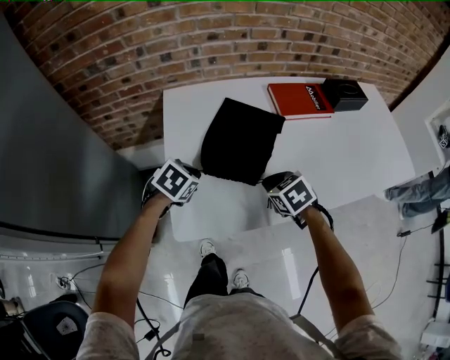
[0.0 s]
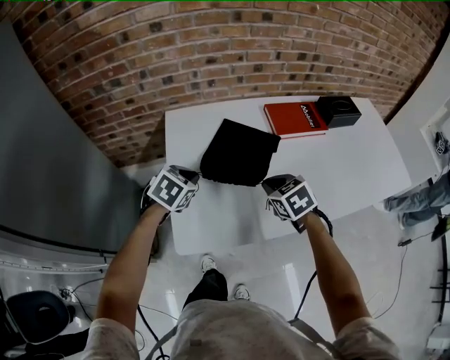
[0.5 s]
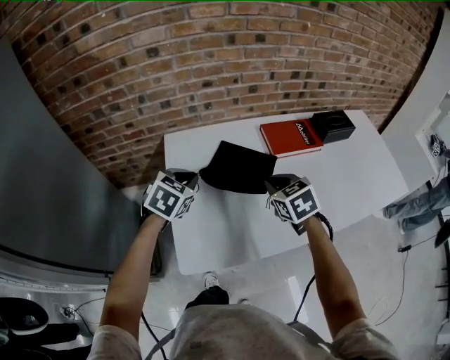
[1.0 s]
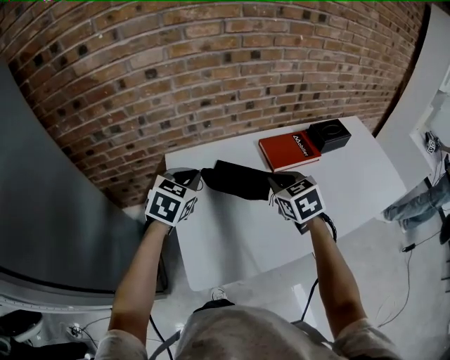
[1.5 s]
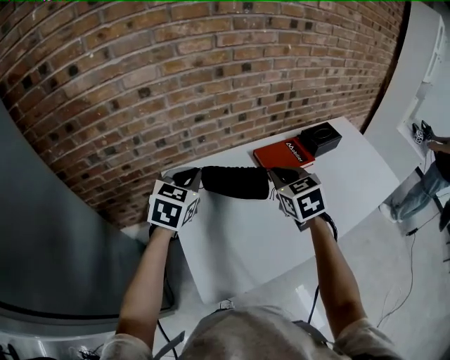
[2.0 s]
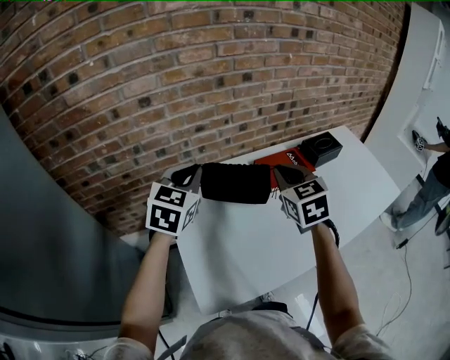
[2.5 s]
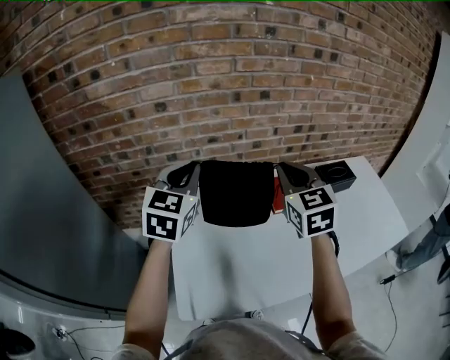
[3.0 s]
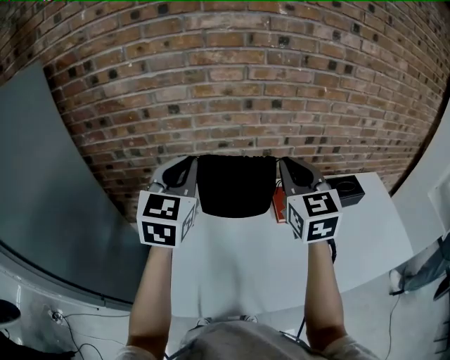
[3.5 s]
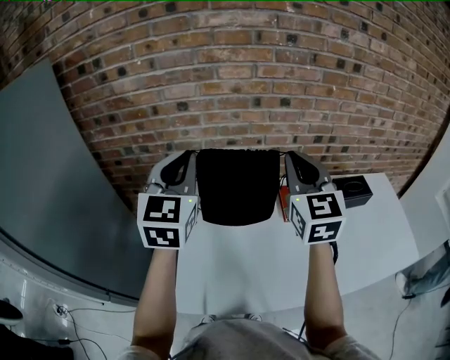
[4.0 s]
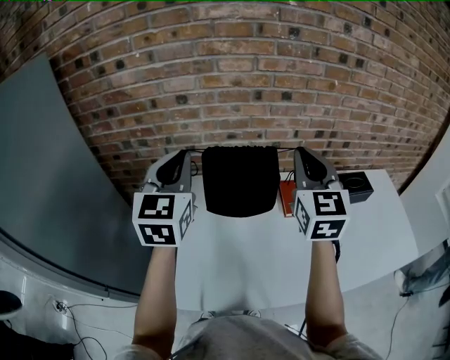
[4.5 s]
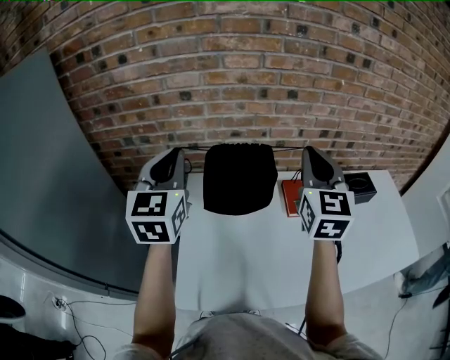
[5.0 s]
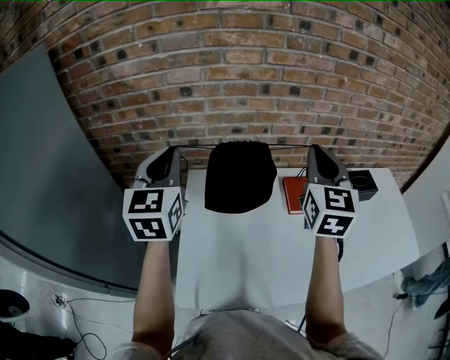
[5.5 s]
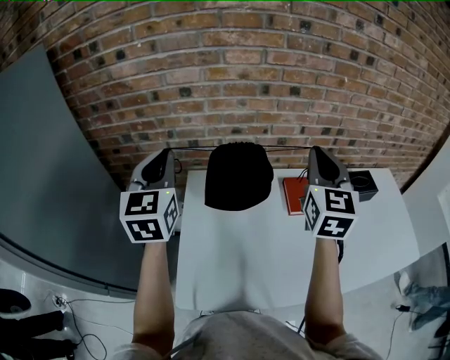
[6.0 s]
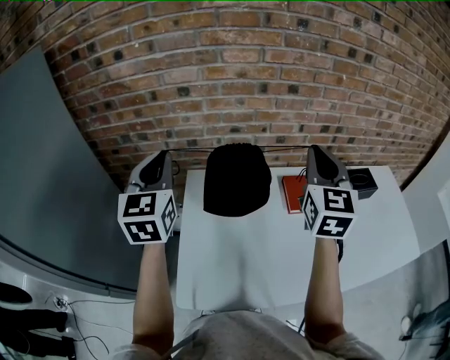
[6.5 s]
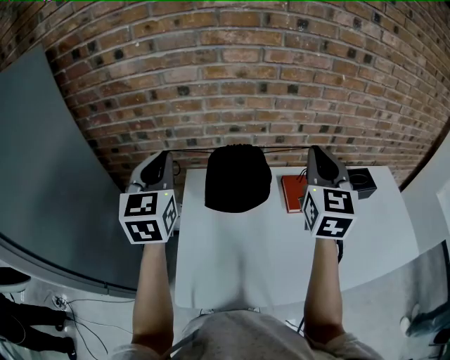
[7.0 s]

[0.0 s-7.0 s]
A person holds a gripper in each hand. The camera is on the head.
0.0 to 2.0 s: The grippers both shift upward and forward by roughly 30 cm. The left gripper points its fingers approximately 30 degrees further upward, while the right gripper changes its angle by some 40 degrees.
2.0 to 3.5 s: The two grippers go approximately 15 cm upward. The left gripper rotates roughly 30 degrees; the right gripper swivels approximately 30 degrees.
3.5 to 5.0 s: The left gripper is displaced to the left by some 5 cm.
5.0 to 7.0 s: The grippers make only small movements.

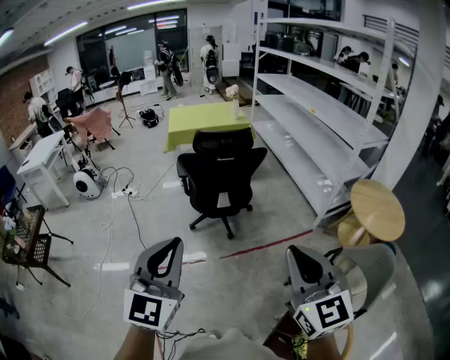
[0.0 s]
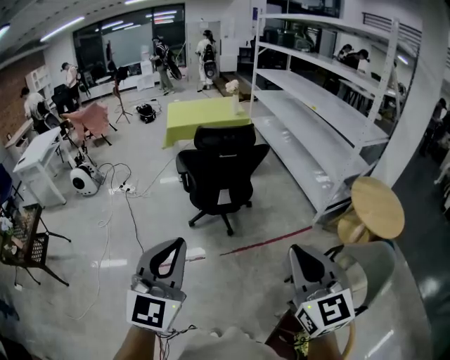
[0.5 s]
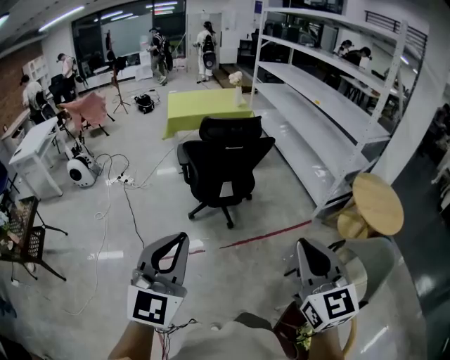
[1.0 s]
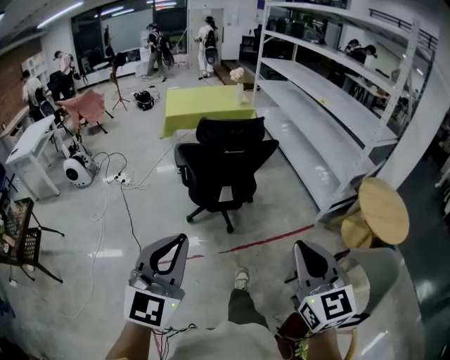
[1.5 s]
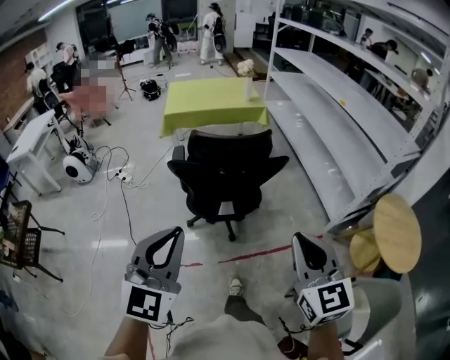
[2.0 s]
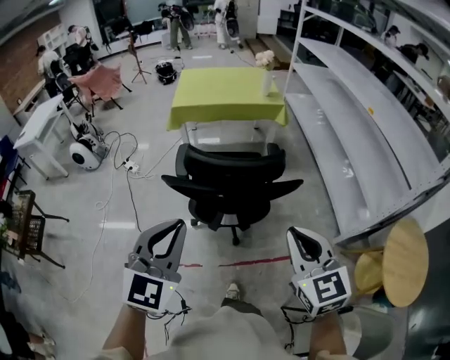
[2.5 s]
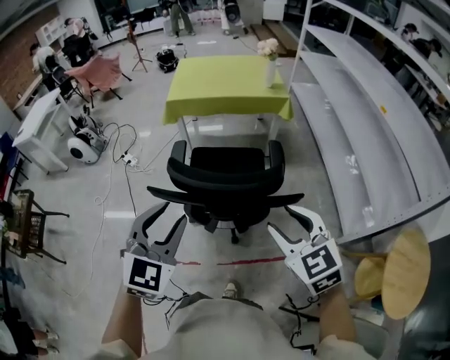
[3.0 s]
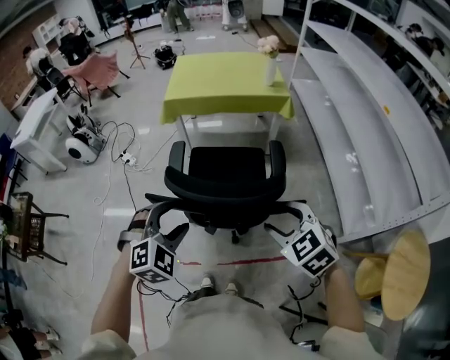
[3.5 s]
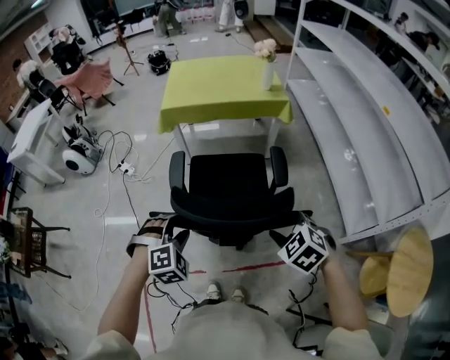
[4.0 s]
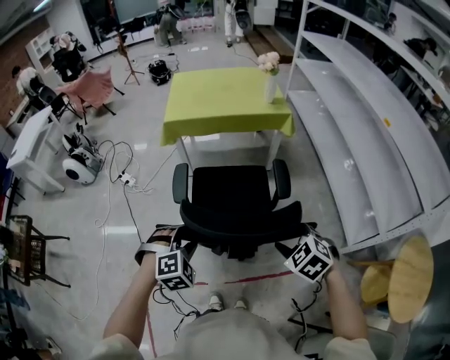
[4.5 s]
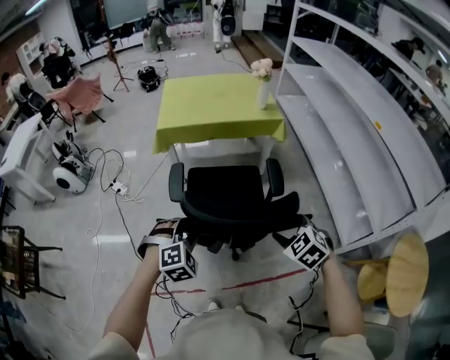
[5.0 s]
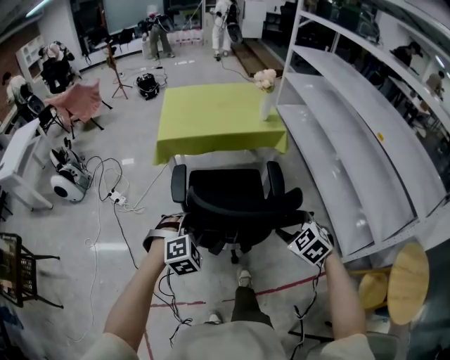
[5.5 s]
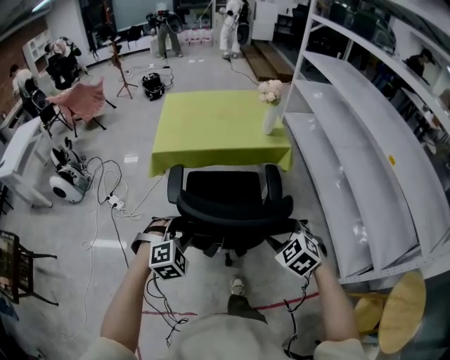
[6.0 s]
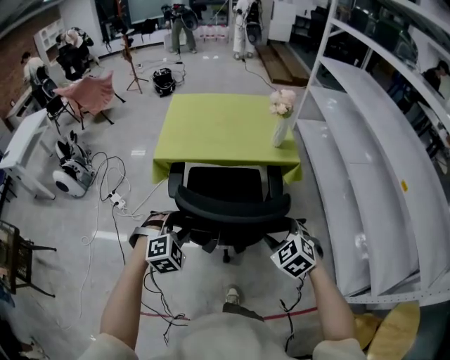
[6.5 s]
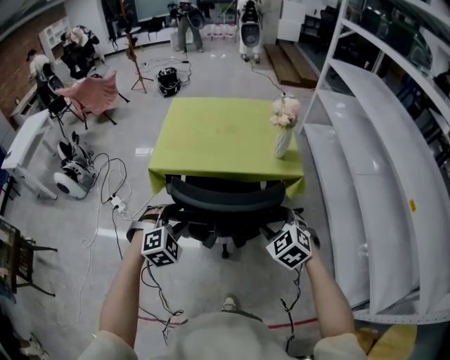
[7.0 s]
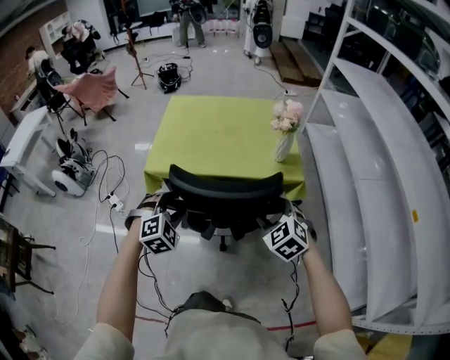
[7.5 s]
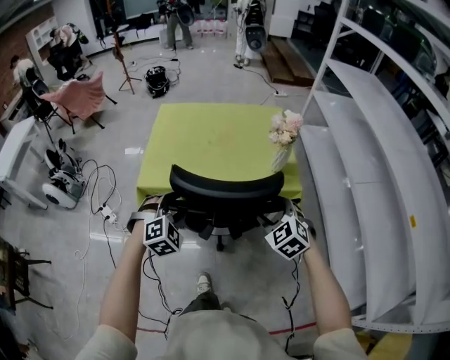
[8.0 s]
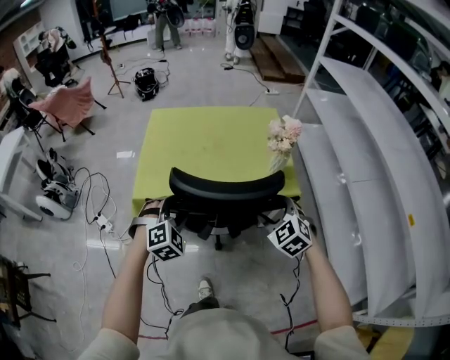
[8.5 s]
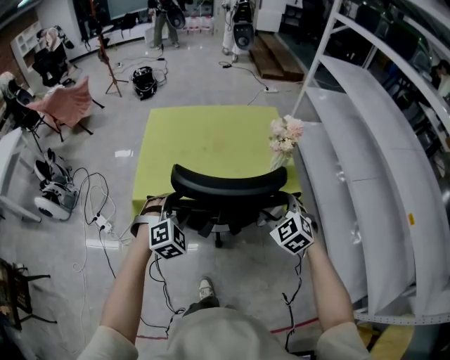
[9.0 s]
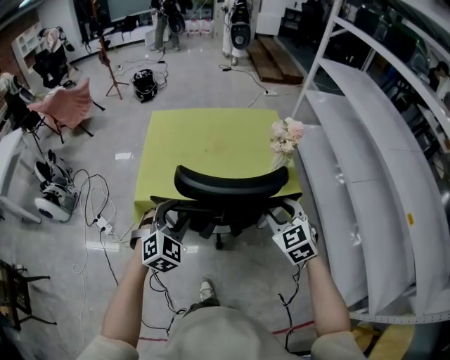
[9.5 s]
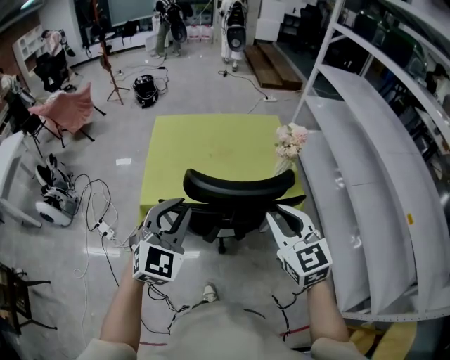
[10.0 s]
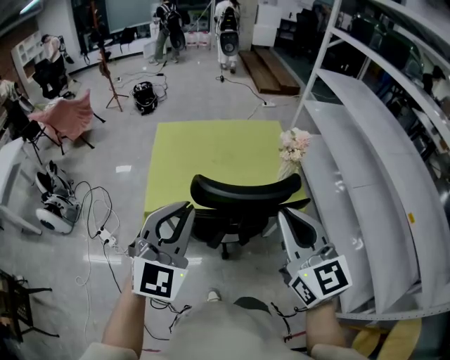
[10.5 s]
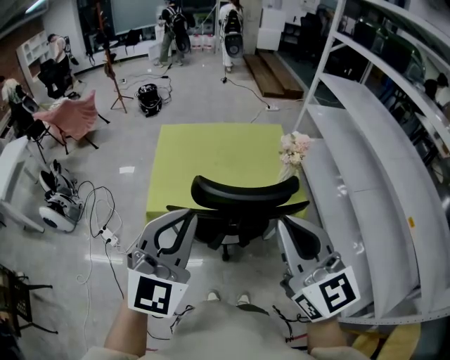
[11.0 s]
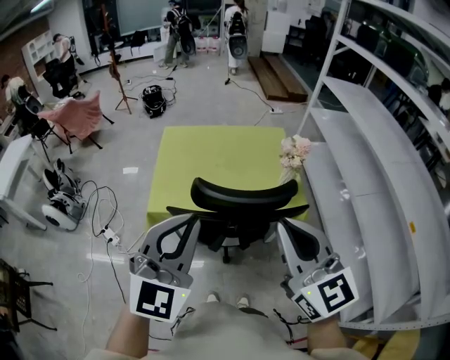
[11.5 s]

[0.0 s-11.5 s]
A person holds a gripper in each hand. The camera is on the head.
0.0 to 2.0 s: The two grippers go about 30 cm forward.
2.0 to 4.0 s: Both grippers move forward and downward, some 40 cm. The right gripper tilts its fingers roughly 50 degrees downward, and opens. The left gripper angles its fingers downward, by some 50 degrees, and opens its fingers.
4.0 to 6.0 s: Both grippers travel together forward, some 25 cm.
6.0 to 7.5 s: The grippers both shift forward by approximately 30 cm.
7.5 to 9.5 s: The right gripper moves forward, approximately 10 cm. Meanwhile the left gripper travels forward and upward by approximately 10 cm.
9.5 to 11.5 s: The right gripper goes some 25 cm upward and backward, points its fingers about 30 degrees further upward, and closes its fingers. The left gripper is displaced upward by roughly 25 cm, points its fingers about 30 degrees further upward, and closes its fingers.

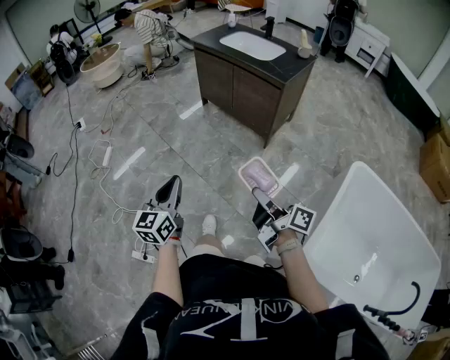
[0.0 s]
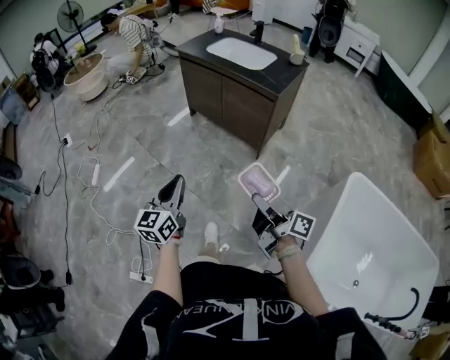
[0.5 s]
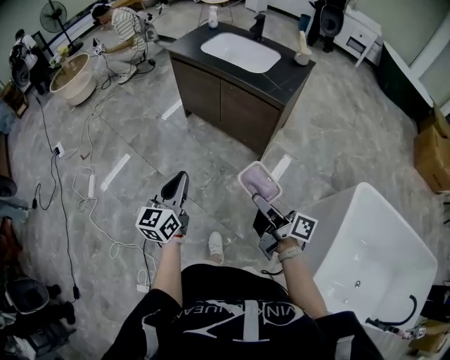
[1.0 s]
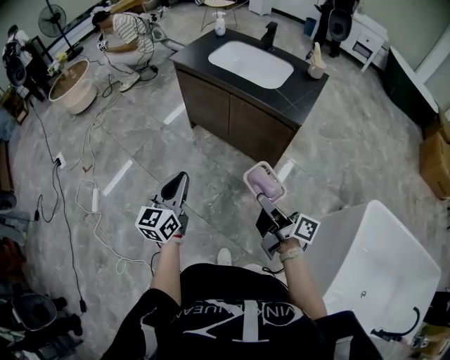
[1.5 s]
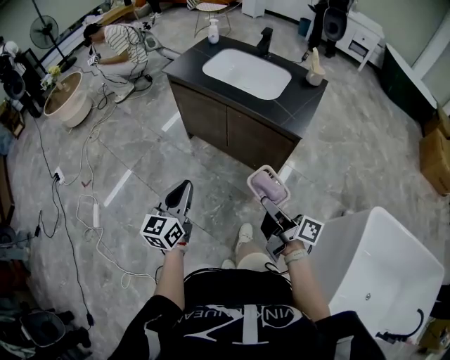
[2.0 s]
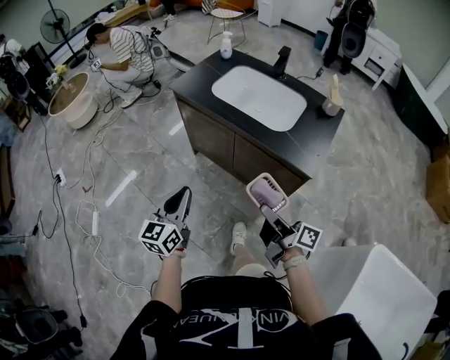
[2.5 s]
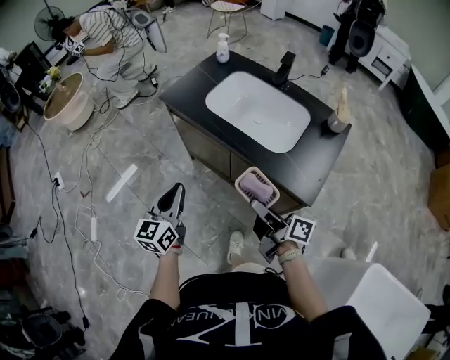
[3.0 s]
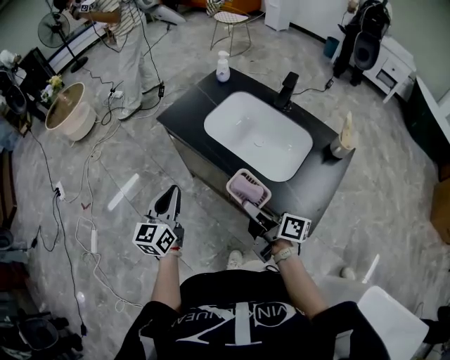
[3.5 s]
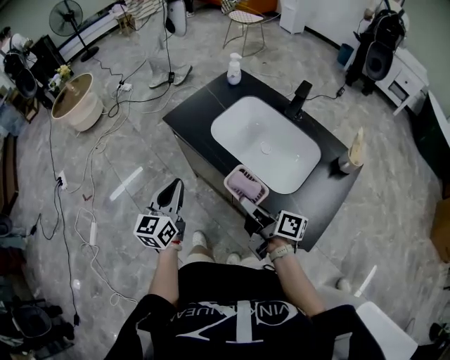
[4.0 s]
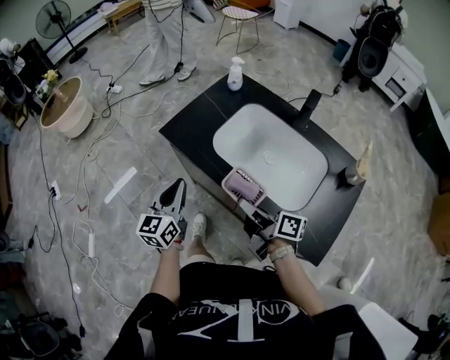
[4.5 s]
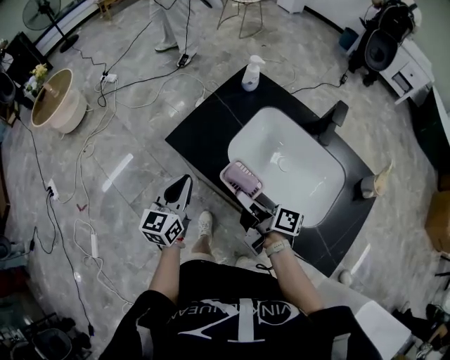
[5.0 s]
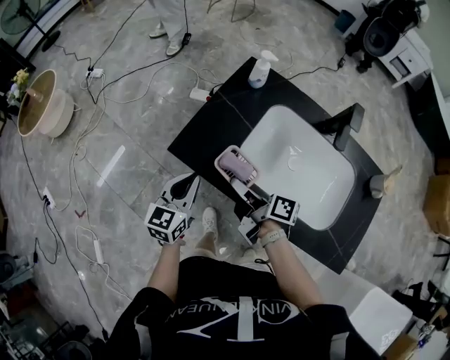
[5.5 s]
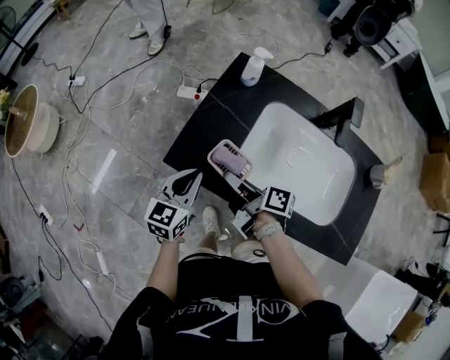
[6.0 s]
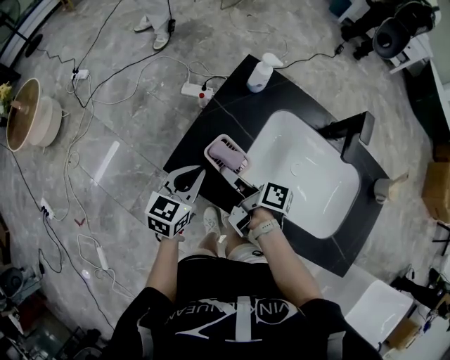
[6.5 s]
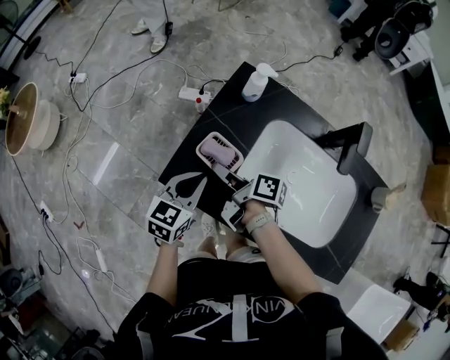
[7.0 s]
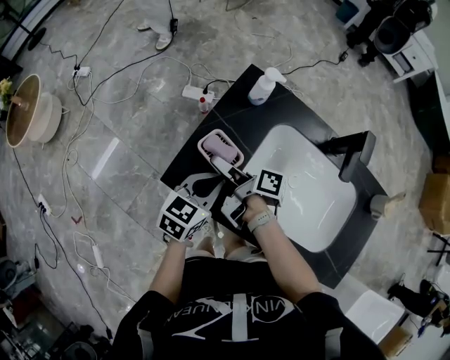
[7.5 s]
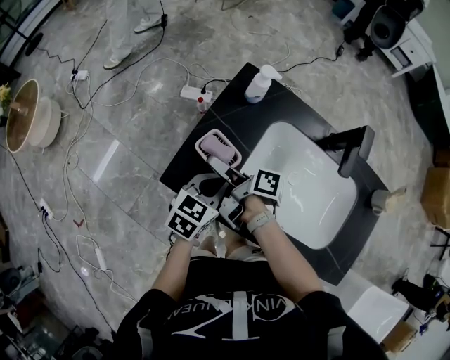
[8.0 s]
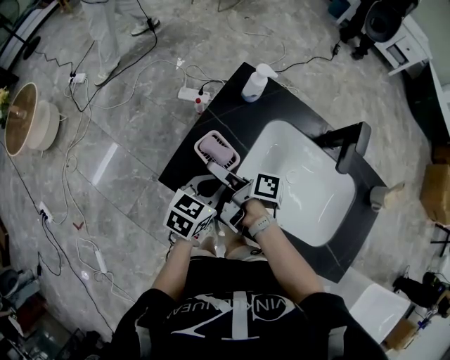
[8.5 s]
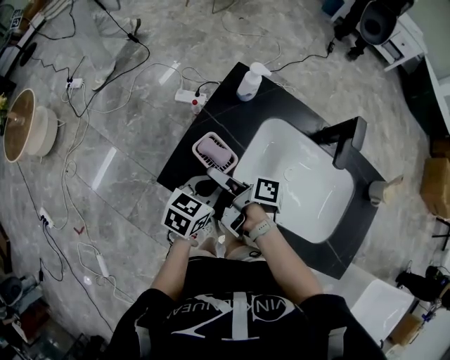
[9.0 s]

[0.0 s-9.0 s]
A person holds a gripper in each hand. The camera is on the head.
0.0 to 2.0 s: The two grippers travel together, forward, roughly 40 cm.
2.0 to 4.5 s: Both grippers are carried forward, roughly 50 cm.
4.5 to 7.0 s: The right gripper heads forward and to the left, covering about 35 cm, and changes its angle by roughly 30 degrees; the left gripper moves forward, some 25 cm, and swivels some 40 degrees.
7.0 to 9.0 s: The left gripper heads to the right, covering some 5 cm. The right gripper opens its fingers.
